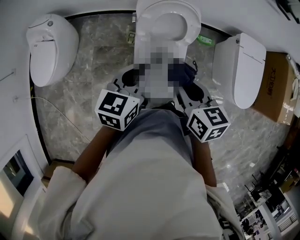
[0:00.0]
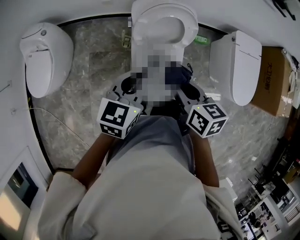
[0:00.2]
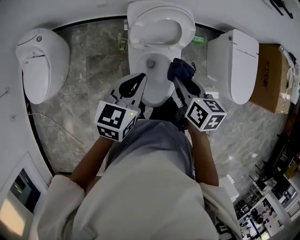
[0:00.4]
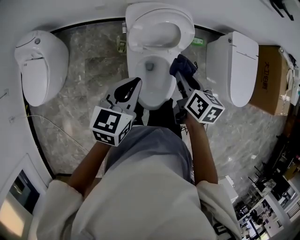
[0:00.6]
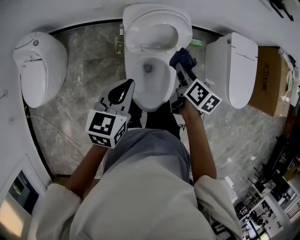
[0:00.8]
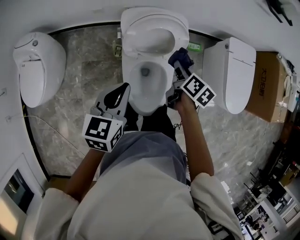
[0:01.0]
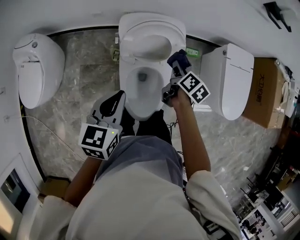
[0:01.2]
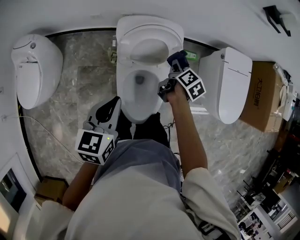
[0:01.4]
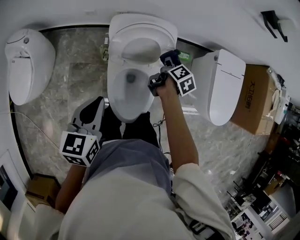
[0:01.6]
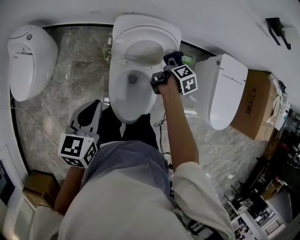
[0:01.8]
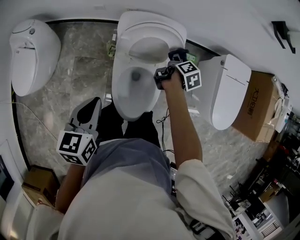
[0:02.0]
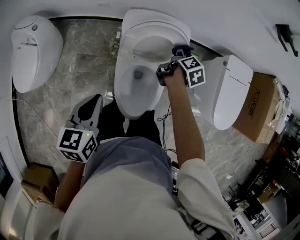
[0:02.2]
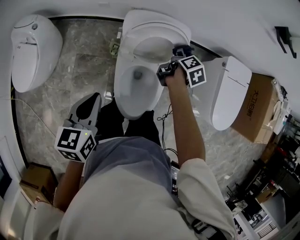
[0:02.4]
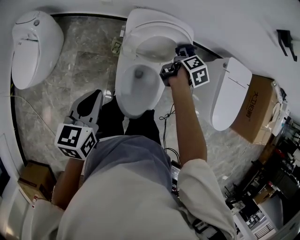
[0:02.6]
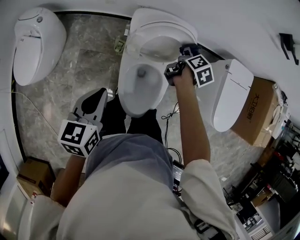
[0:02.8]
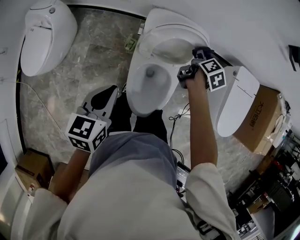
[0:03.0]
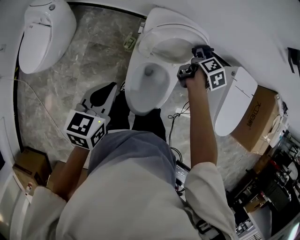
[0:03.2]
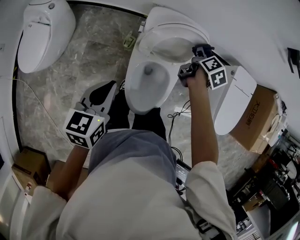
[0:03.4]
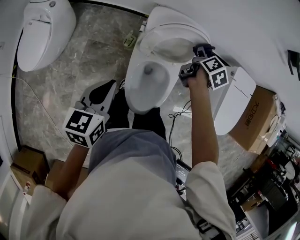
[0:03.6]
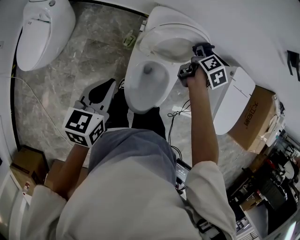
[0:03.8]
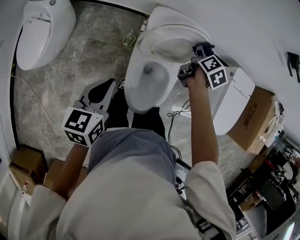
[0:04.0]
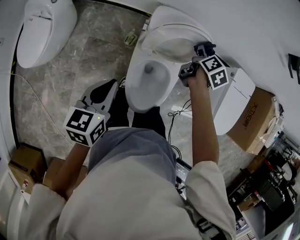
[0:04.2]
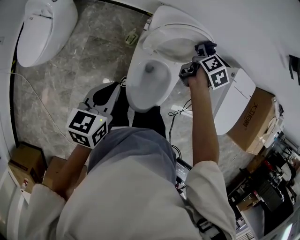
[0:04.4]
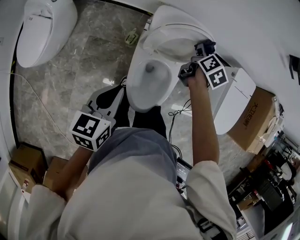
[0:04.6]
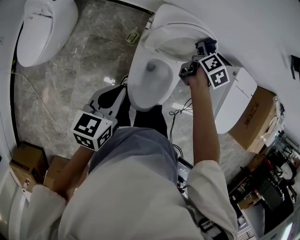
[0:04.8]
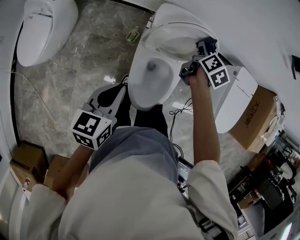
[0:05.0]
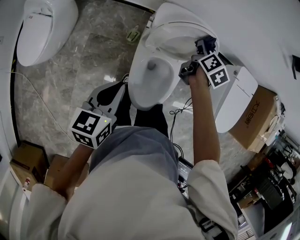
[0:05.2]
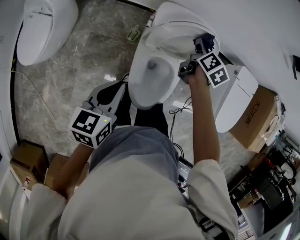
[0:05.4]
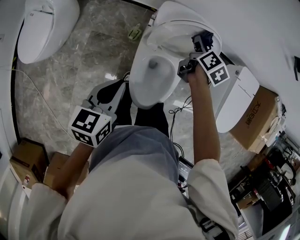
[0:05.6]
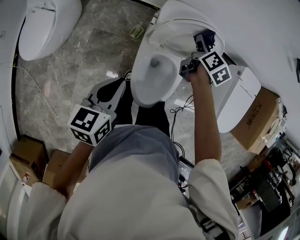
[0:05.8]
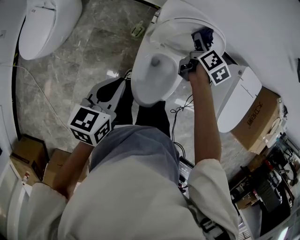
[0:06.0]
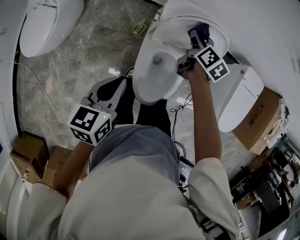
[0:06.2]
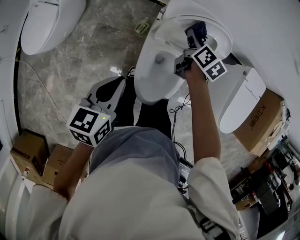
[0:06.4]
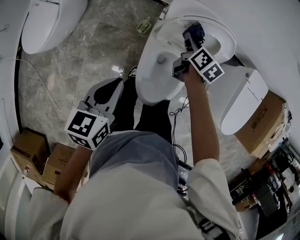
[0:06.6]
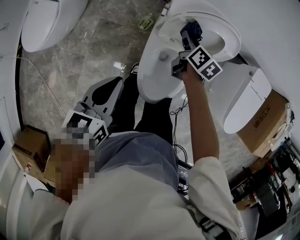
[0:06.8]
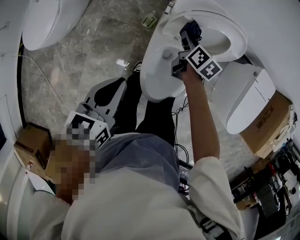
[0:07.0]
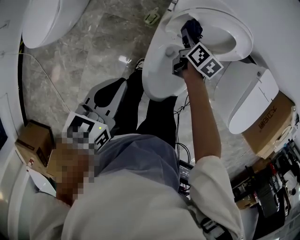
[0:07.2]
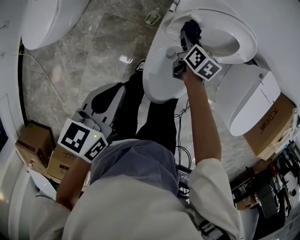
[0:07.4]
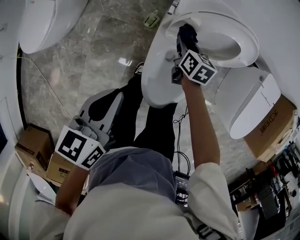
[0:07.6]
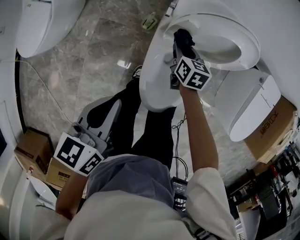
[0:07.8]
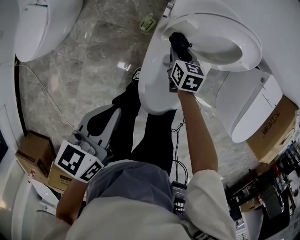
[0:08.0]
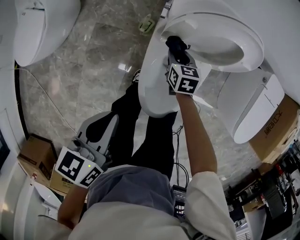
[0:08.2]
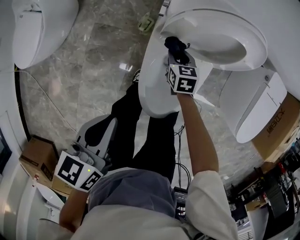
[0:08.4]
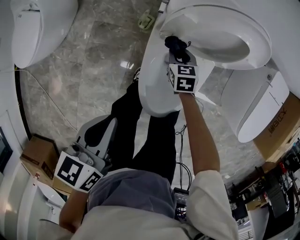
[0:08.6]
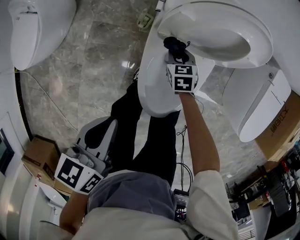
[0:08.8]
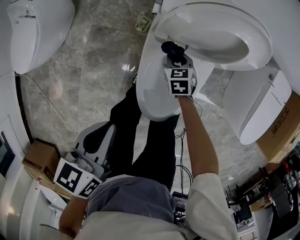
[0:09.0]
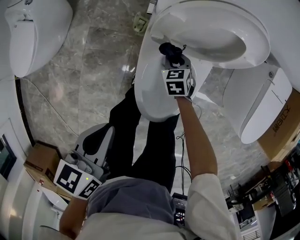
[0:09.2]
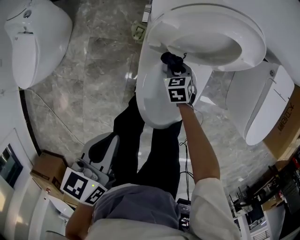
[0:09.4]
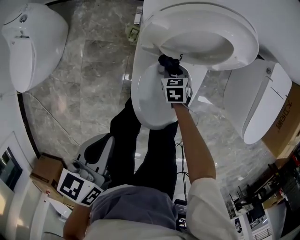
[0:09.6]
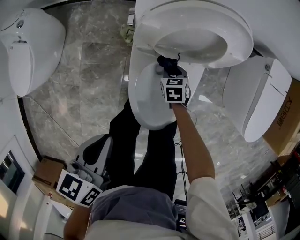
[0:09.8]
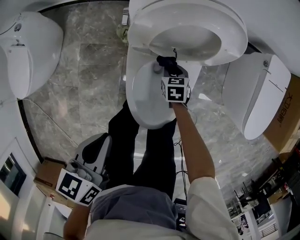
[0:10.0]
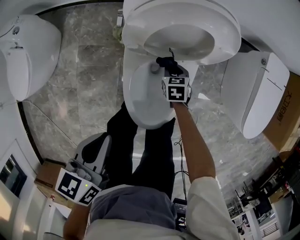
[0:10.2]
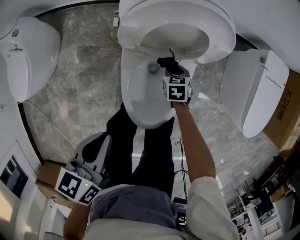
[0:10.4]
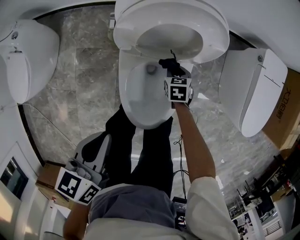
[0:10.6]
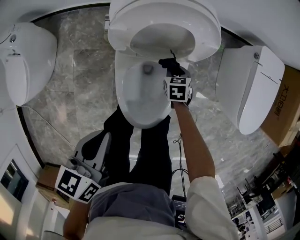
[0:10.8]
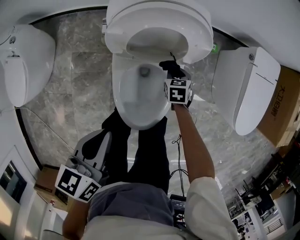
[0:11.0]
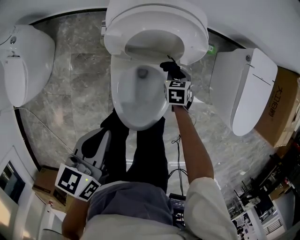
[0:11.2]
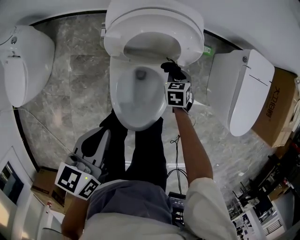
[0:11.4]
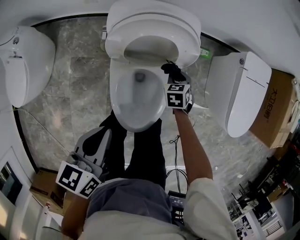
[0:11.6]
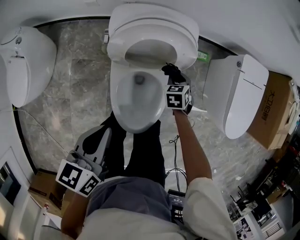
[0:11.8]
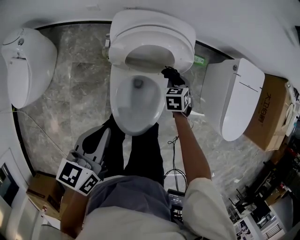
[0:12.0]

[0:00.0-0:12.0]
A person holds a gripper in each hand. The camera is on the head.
0:00.0 to 0:01.6: The left gripper changes place by some 5 cm. Meanwhile the right gripper goes some 35 cm forward, downward and to the right, and twists about 50 degrees clockwise, seen from behind.
0:01.6 to 0:03.0: The left gripper goes approximately 5 cm to the left. The right gripper ends up some 10 cm from where it was.
0:03.0 to 0:04.4: The right gripper shifts approximately 5 cm to the left.
0:04.4 to 0:06.0: The right gripper heads to the left, covering roughly 5 cm.
0:06.0 to 0:07.6: The right gripper heads downward and to the left, covering about 20 cm, and turns by about 20 degrees.
0:07.6 to 0:09.0: The right gripper heads downward, covering some 15 cm, and rotates approximately 30 degrees; the left gripper moves downward, approximately 5 cm.
0:09.0 to 0:10.4: The right gripper travels to the right by approximately 10 cm; the left gripper heads to the right, covering about 5 cm.
0:10.4 to 0:12.0: The left gripper moves upward, some 5 cm, while the right gripper travels upward and to the right by about 15 cm.

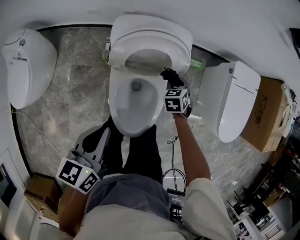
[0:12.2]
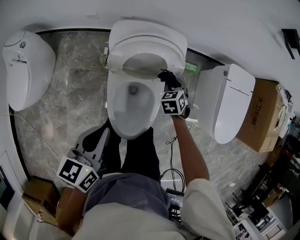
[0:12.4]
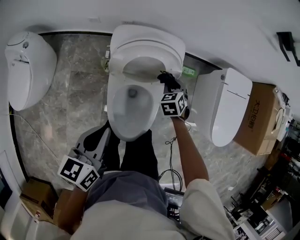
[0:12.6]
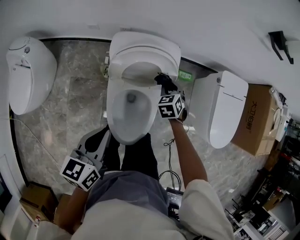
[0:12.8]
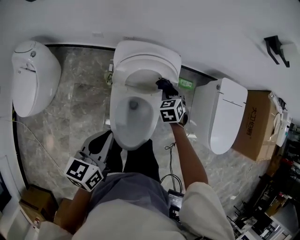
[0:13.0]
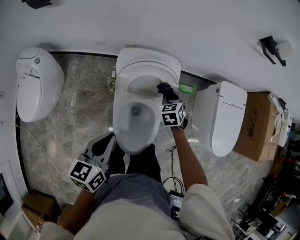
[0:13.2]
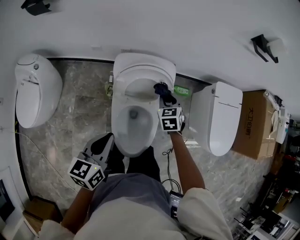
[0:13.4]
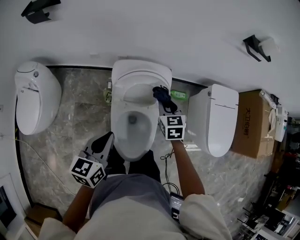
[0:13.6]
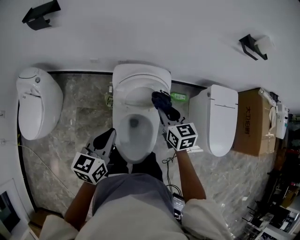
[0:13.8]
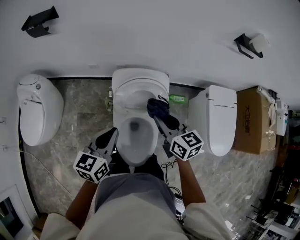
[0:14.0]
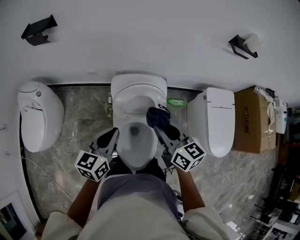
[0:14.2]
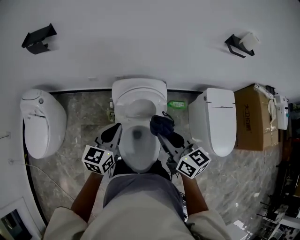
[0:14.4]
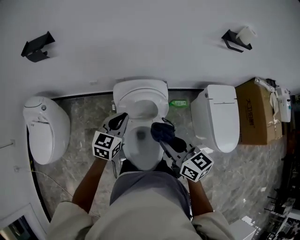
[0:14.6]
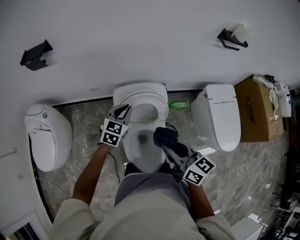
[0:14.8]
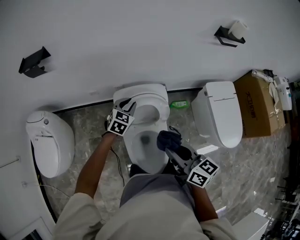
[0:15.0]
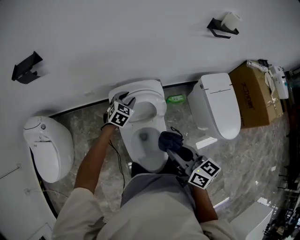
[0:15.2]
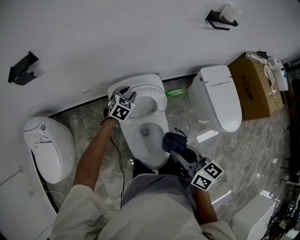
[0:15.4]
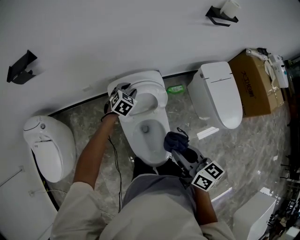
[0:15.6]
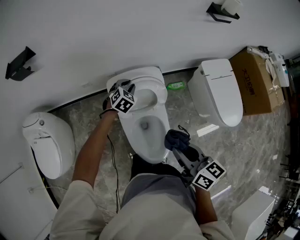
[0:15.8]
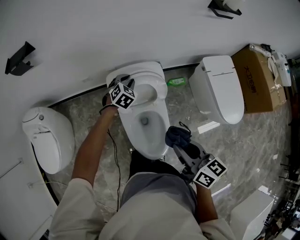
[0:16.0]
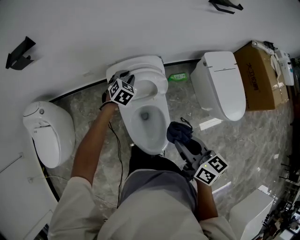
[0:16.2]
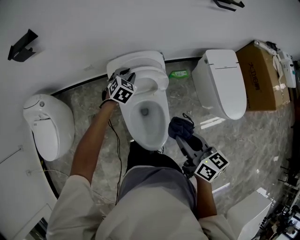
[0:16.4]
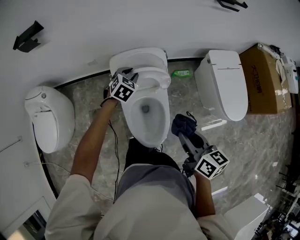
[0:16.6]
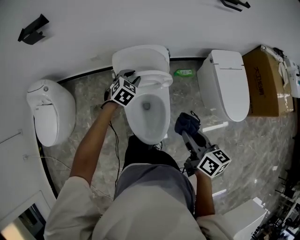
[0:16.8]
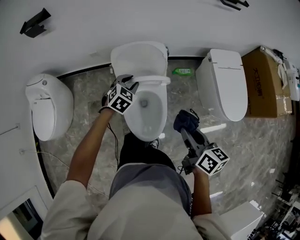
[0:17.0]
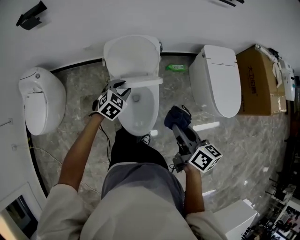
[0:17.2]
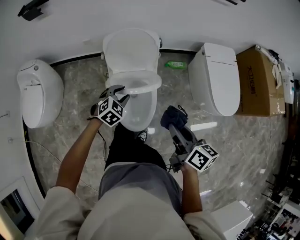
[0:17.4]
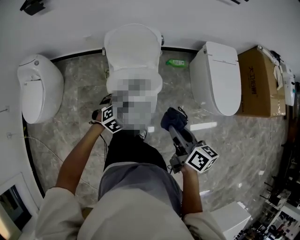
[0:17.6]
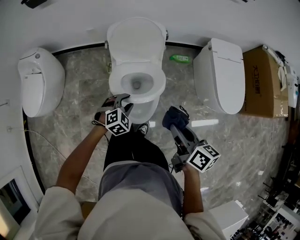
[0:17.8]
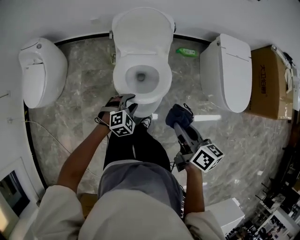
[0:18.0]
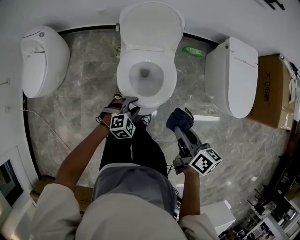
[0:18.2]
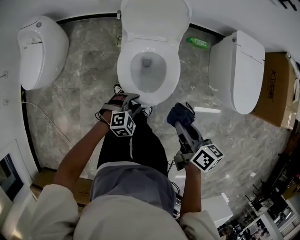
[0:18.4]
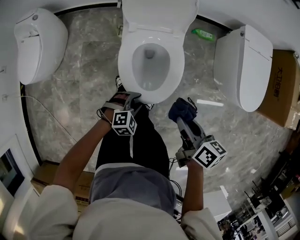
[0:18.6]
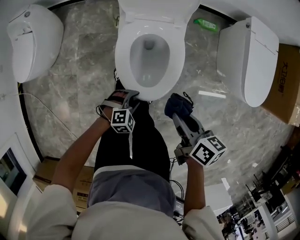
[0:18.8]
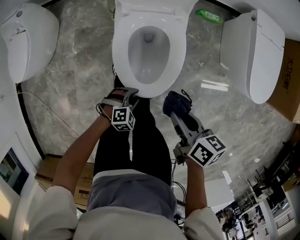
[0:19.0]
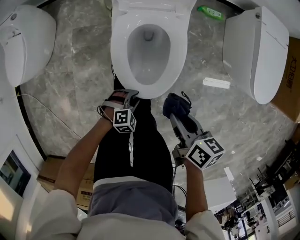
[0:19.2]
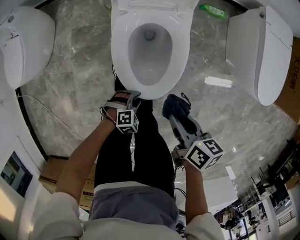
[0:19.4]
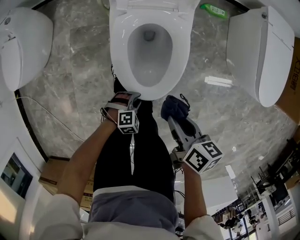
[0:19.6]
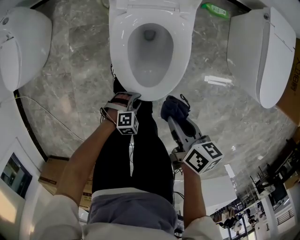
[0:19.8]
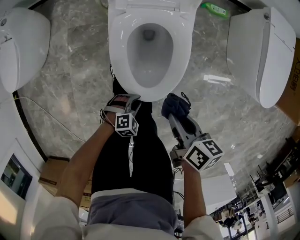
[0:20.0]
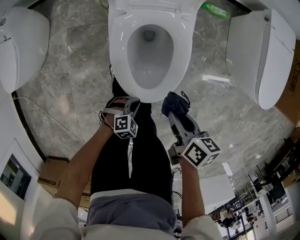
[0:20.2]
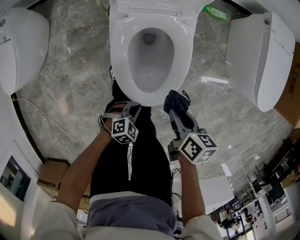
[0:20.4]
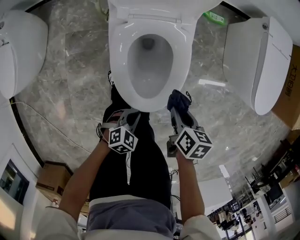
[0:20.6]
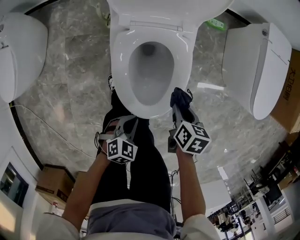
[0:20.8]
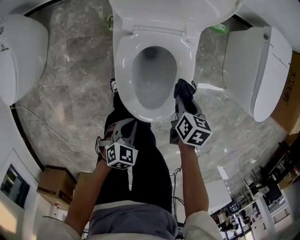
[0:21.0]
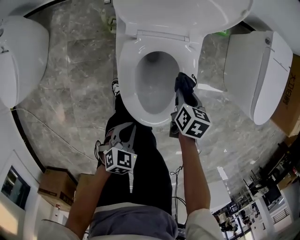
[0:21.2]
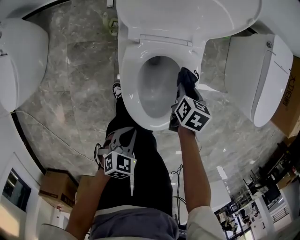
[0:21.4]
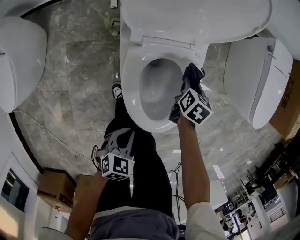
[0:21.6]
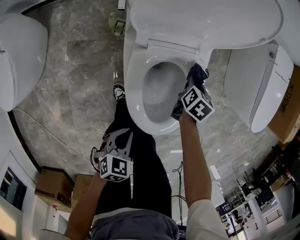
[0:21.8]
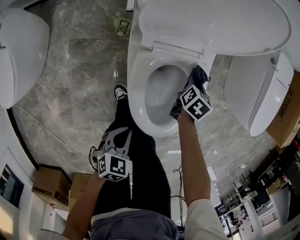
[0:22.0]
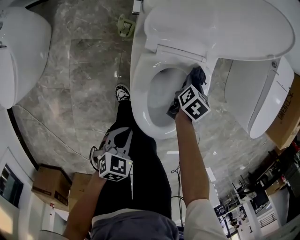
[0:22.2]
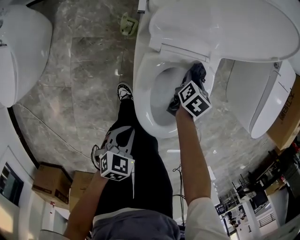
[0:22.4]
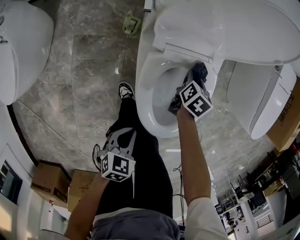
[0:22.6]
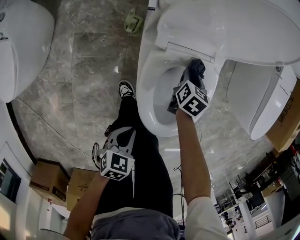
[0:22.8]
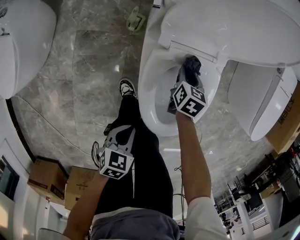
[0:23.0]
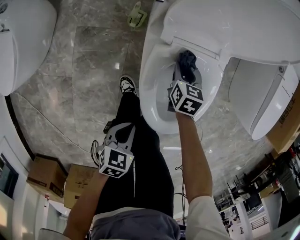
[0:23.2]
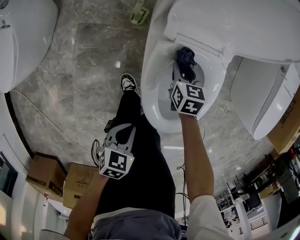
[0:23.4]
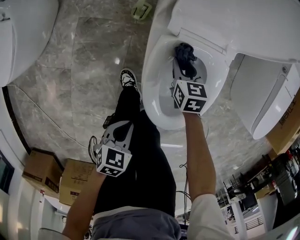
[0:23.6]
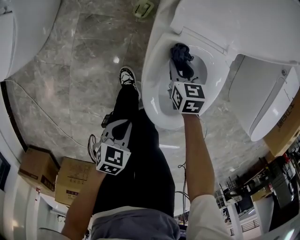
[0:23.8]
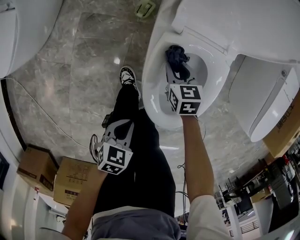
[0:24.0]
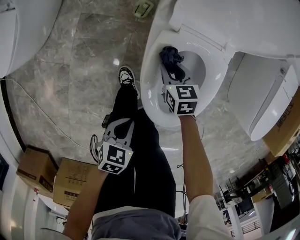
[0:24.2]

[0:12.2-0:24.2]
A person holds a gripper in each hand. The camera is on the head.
0:12.2 to 0:13.8: The left gripper shifts about 10 cm upward; the right gripper shifts about 25 cm upward, and turns by some 40 degrees.
0:13.8 to 0:15.2: The left gripper heads forward and downward, covering about 25 cm, rolls clockwise, seen from behind, by about 50 degrees, and opens up, while the right gripper moves backward and upward, approximately 20 cm, and turns by about 30 degrees.
0:15.2 to 0:16.6: The right gripper heads backward and to the right, covering about 10 cm. Meanwhile the left gripper heads backward, covering roughly 5 cm.
0:16.6 to 0:18.2: The left gripper travels backward and downward by approximately 40 cm. The right gripper heads backward and downward, covering about 15 cm.
0:18.2 to 0:19.8: Both grippers move downward, roughly 25 cm.
0:19.8 to 0:21.2: The left gripper moves upward, to the left and forward, approximately 15 cm, rotates around the line of its fingers by approximately 40 degrees, counterclockwise from behind, and closes. The right gripper heads forward and downward, covering about 20 cm, and swivels some 30 degrees.
0:21.2 to 0:22.6: The left gripper shifts about 10 cm to the left. The right gripper heads to the left, downward and forward, covering some 15 cm.
0:22.6 to 0:24.2: The left gripper shifts by about 5 cm. Meanwhile the right gripper moves roughly 15 cm, and swivels about 50 degrees.
